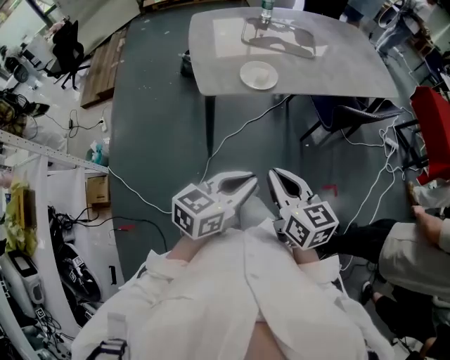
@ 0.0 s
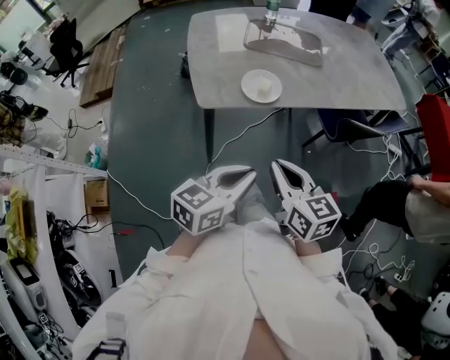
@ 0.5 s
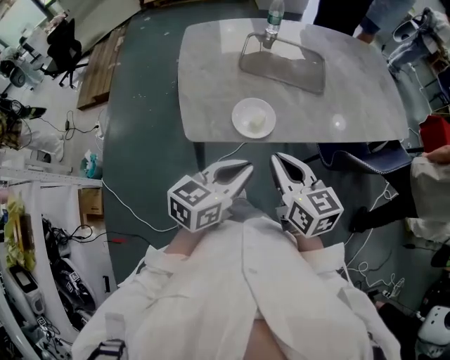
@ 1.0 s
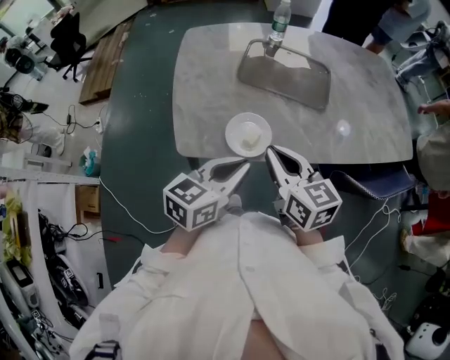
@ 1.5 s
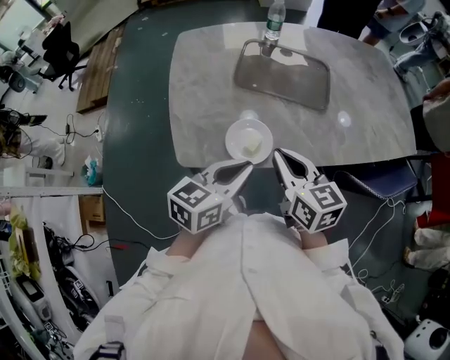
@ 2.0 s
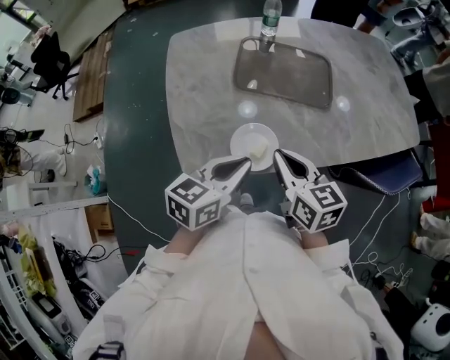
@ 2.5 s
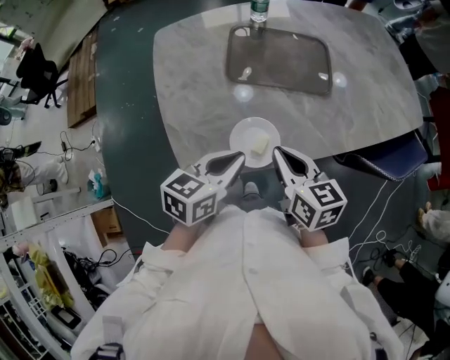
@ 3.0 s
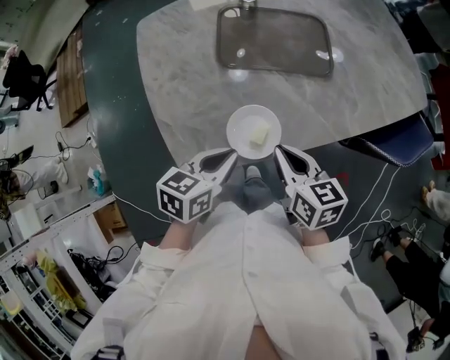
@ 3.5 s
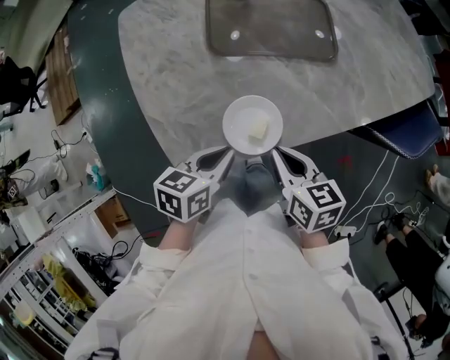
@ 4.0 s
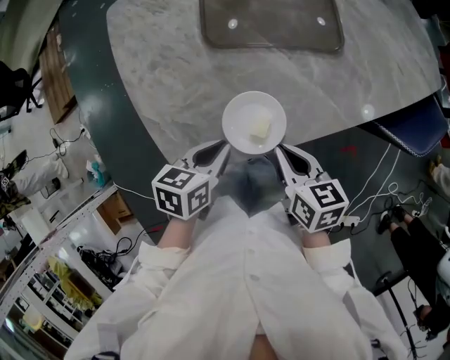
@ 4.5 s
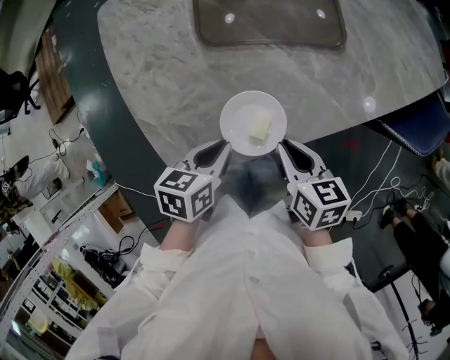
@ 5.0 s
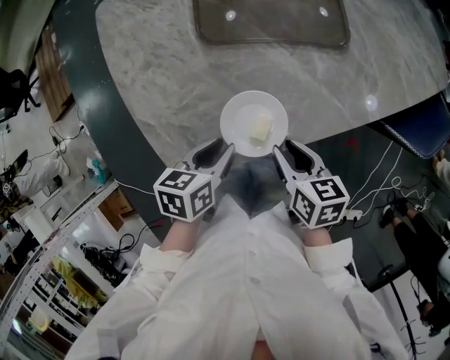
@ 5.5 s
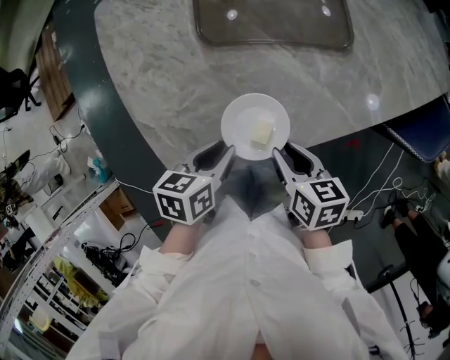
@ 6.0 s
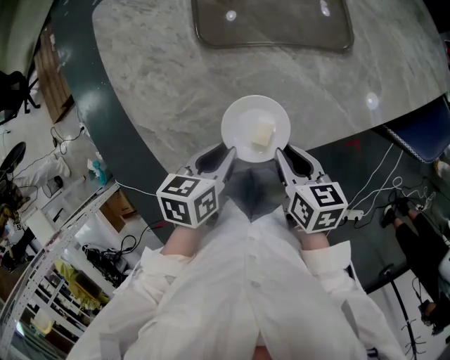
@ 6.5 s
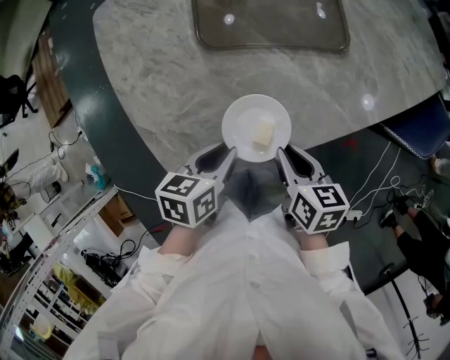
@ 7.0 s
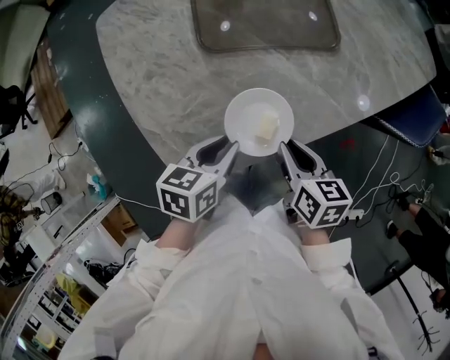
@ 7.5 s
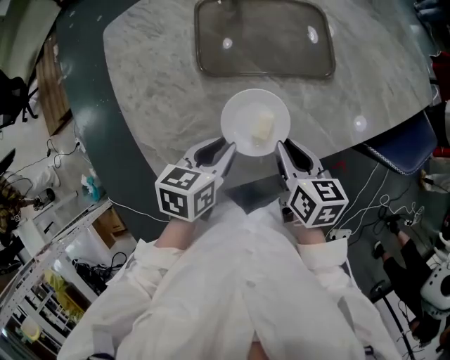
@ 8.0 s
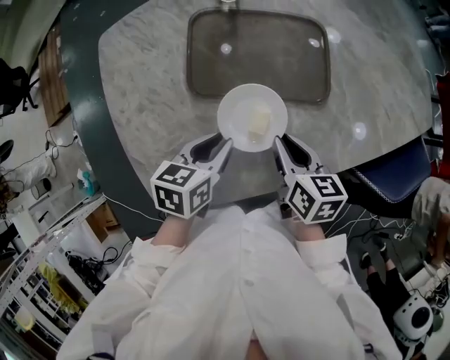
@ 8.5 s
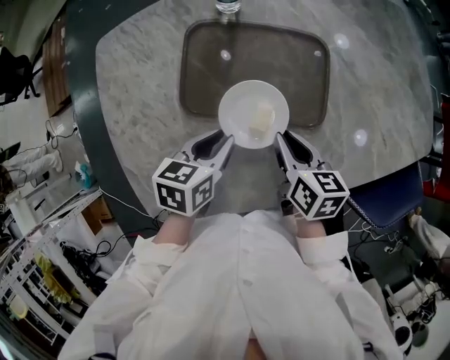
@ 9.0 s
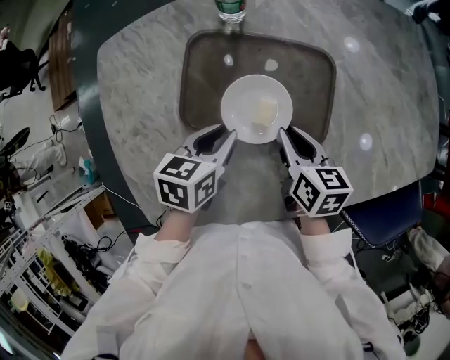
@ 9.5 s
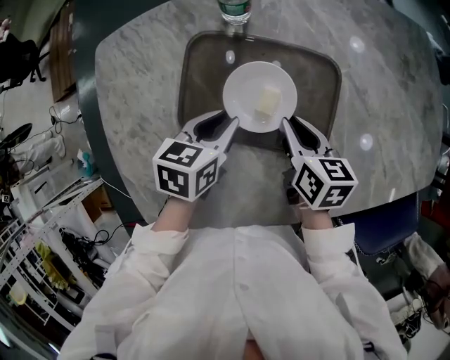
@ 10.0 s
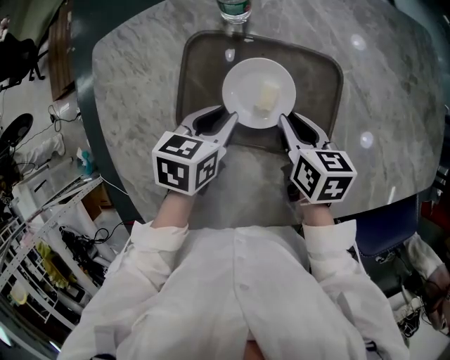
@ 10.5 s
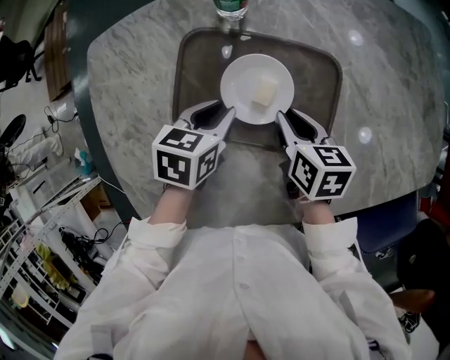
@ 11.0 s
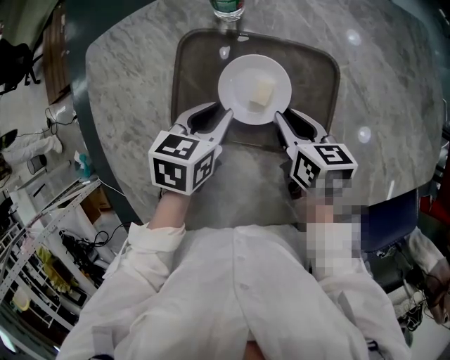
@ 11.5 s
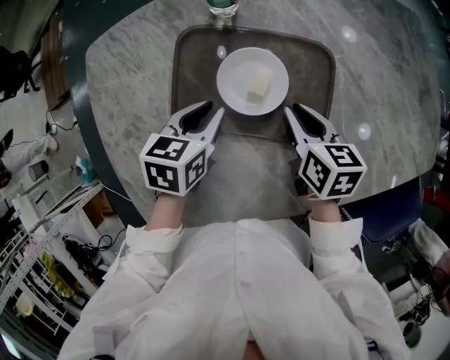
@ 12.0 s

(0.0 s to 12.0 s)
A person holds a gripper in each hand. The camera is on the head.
0.0 s - 2.0 s: The grippers both shift forward by about 35 cm.
2.0 s - 4.0 s: The right gripper moves downward, roughly 10 cm, and swivels about 30 degrees. The left gripper travels downward and to the left by some 15 cm, and swivels approximately 30 degrees.
4.0 s - 6.0 s: Both grippers move downward, about 5 cm. The left gripper opens its fingers. Meanwhile the right gripper opens its fingers.
6.0 s - 8.0 s: Both grippers move forward, roughly 10 cm.
8.0 s - 10.0 s: Both grippers travel together forward, about 25 cm.
10.0 s - 12.0 s: The grippers make only small movements.

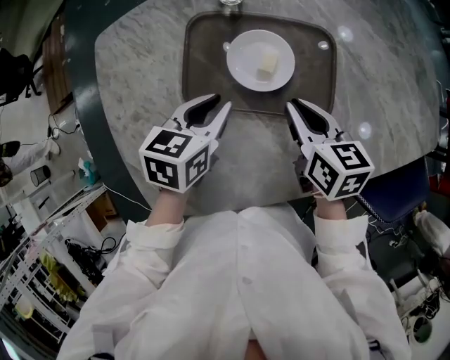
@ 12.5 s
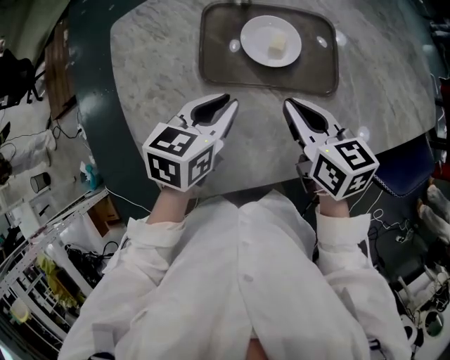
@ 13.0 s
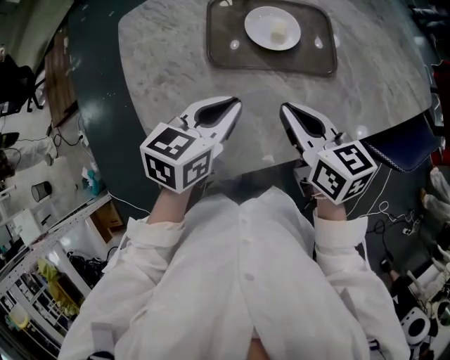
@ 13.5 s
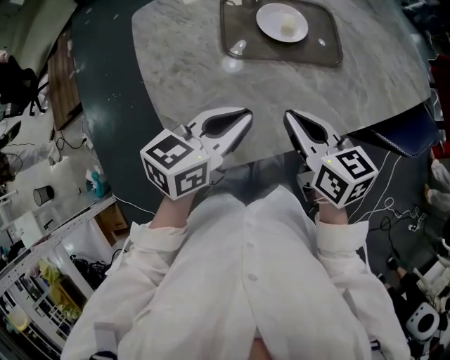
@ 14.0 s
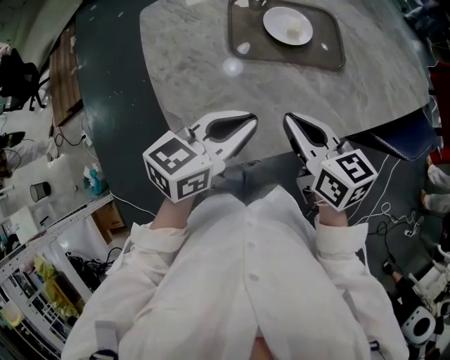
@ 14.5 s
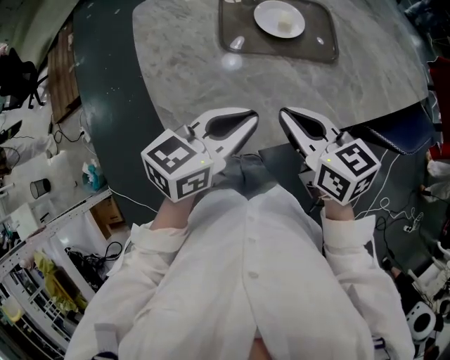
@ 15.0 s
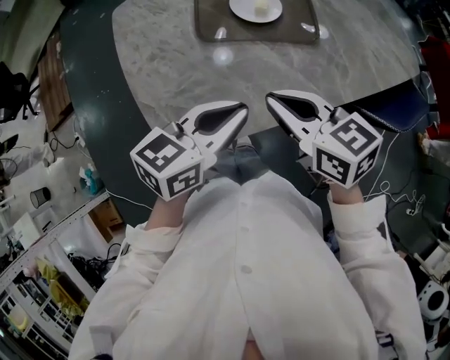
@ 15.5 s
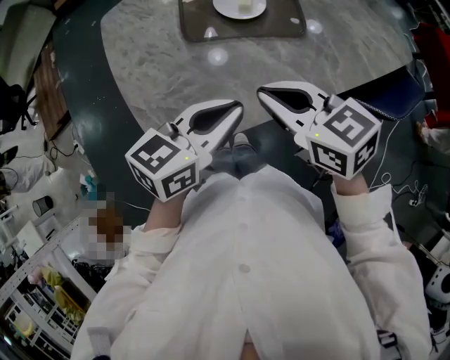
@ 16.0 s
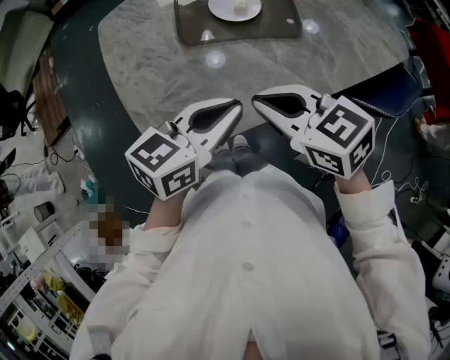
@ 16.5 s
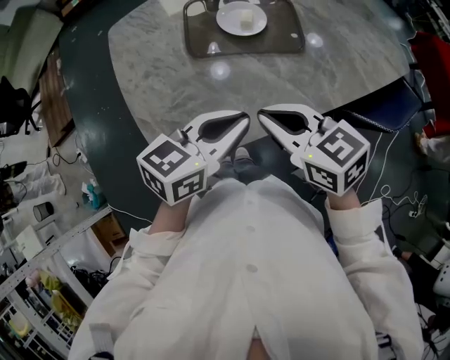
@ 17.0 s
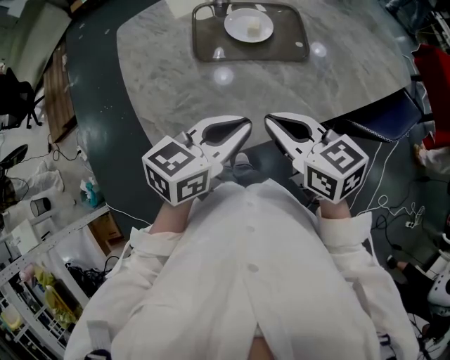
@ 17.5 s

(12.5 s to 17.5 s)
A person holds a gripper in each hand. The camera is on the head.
12.5 s - 15.0 s: The right gripper is displaced backward and to the left by about 25 cm, while the left gripper goes some 25 cm backward and upward, and rotates some 30 degrees.
15.0 s - 17.5 s: The right gripper changes place by some 5 cm; the left gripper heads to the right, covering some 5 cm.

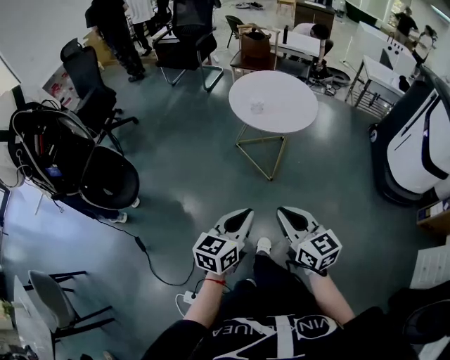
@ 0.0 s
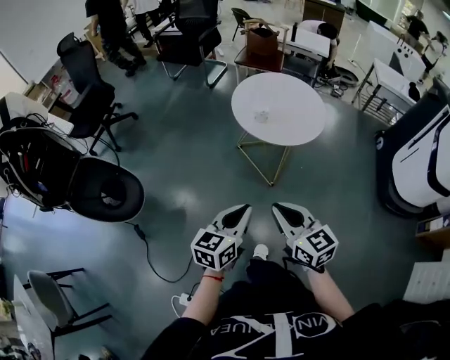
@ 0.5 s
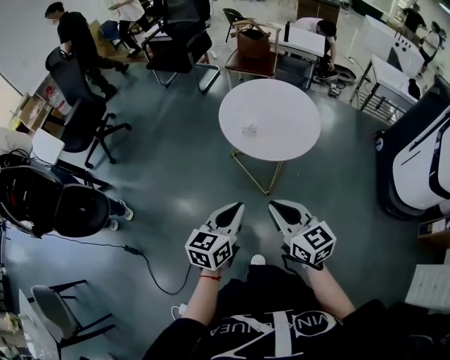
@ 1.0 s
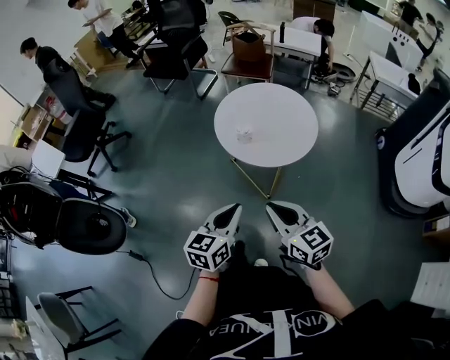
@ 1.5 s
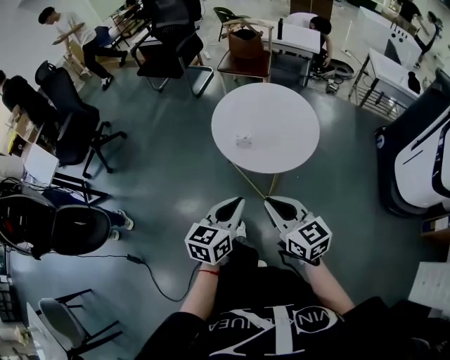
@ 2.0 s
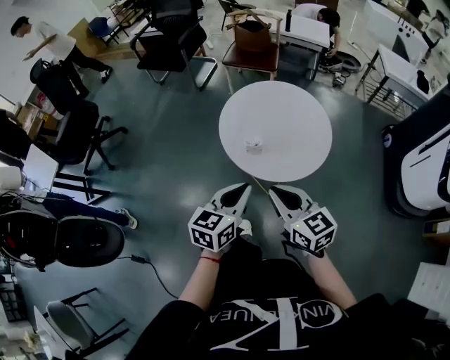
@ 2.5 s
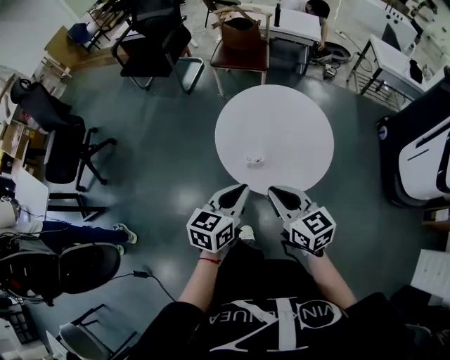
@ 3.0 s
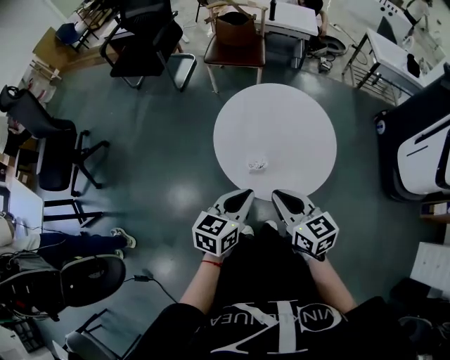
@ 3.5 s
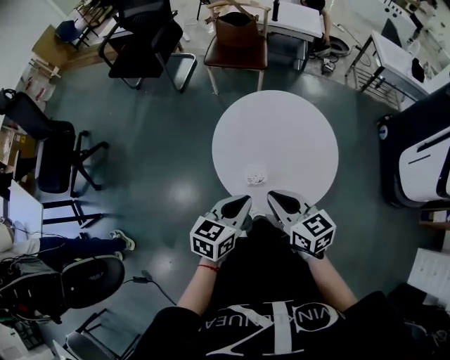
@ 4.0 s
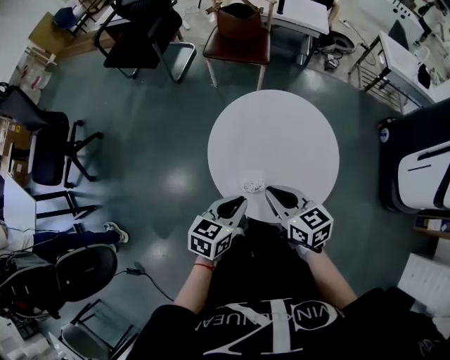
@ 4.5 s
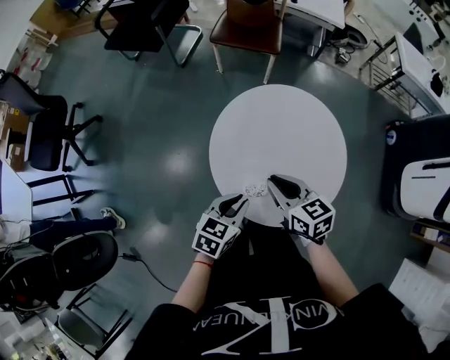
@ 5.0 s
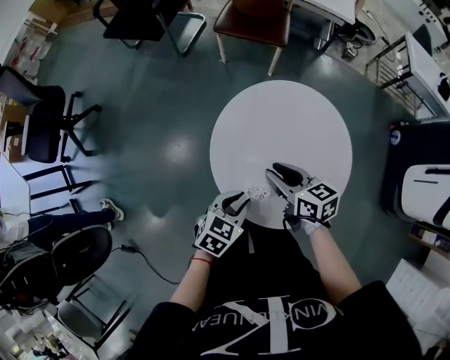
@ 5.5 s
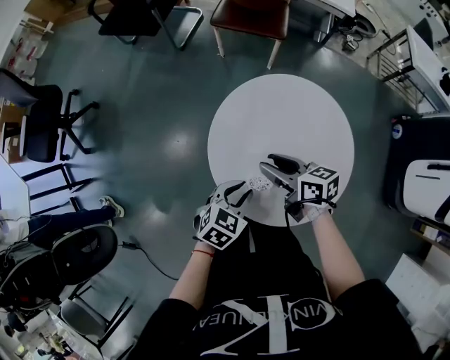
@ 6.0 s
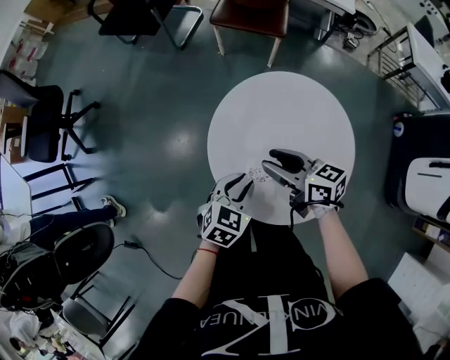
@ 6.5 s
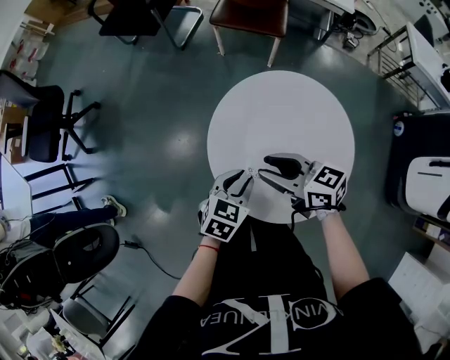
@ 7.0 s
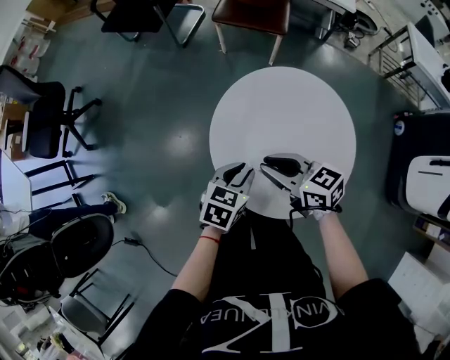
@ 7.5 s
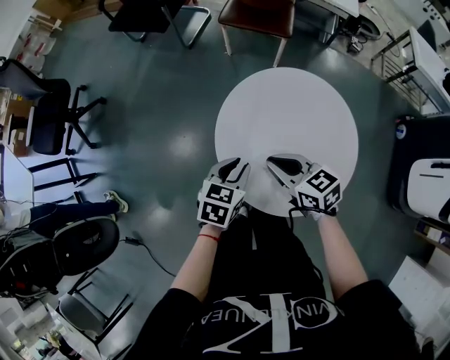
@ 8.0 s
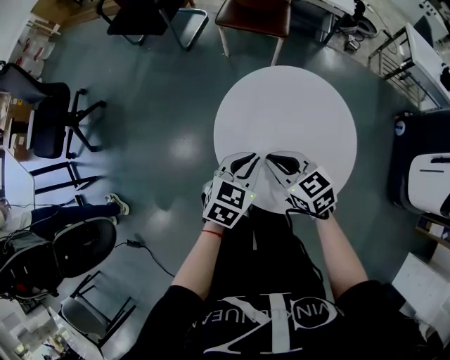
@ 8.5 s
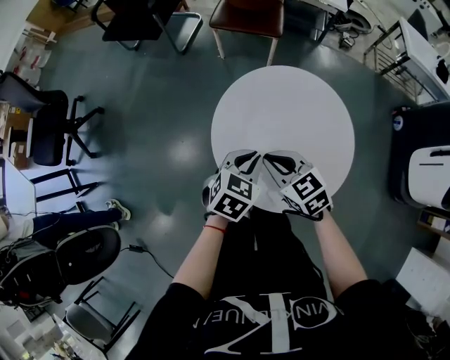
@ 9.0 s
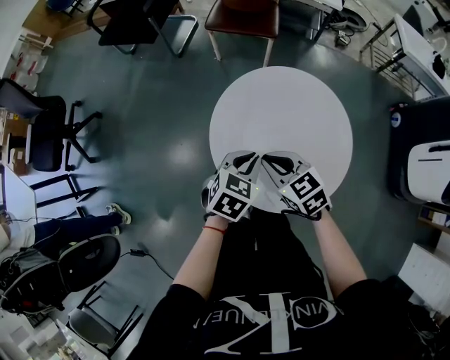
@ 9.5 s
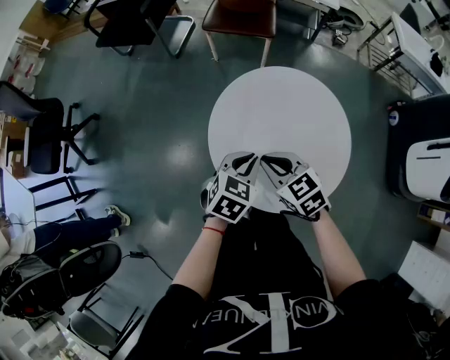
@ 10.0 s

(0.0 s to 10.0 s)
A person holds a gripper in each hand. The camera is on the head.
0.0 s - 2.0 s: Both grippers travel together forward, about 30 cm.
2.0 s - 4.0 s: The grippers both shift forward by roughly 25 cm.
4.0 s - 6.0 s: The left gripper heads downward and forward, covering approximately 15 cm, and changes its angle by roughly 30 degrees; the right gripper shifts approximately 20 cm forward and downward, rotates approximately 30 degrees, and opens its fingers.
6.0 s - 8.0 s: The right gripper rotates about 20 degrees, and closes up. The left gripper shifts by approximately 5 cm.
8.0 s - 10.0 s: The left gripper shifts by roughly 5 cm.
